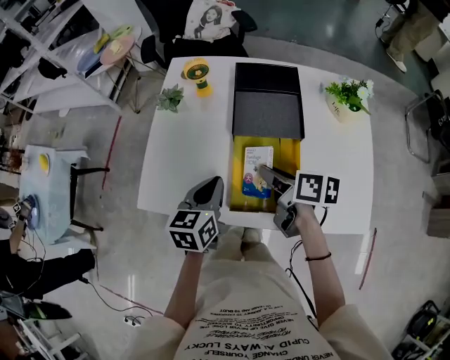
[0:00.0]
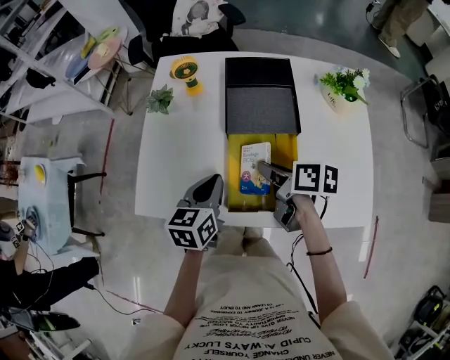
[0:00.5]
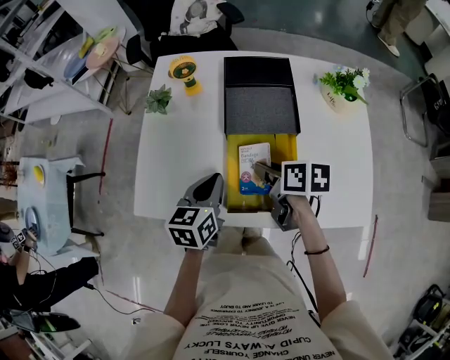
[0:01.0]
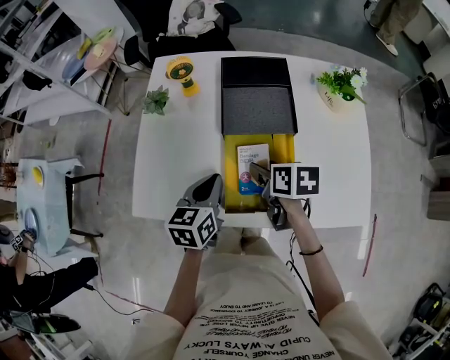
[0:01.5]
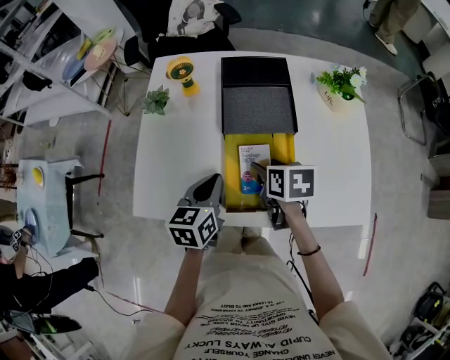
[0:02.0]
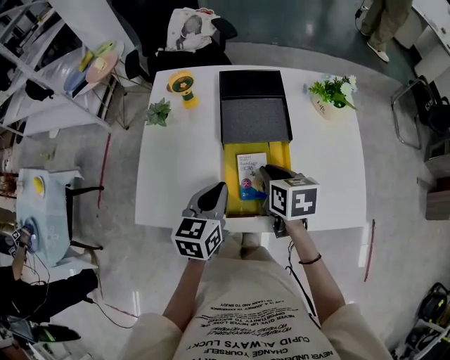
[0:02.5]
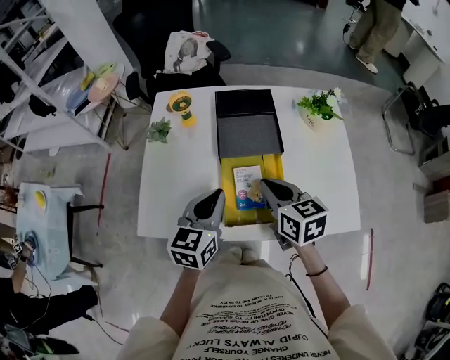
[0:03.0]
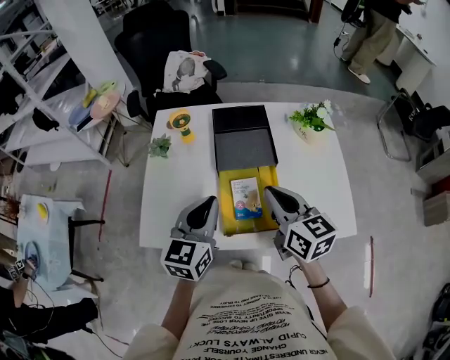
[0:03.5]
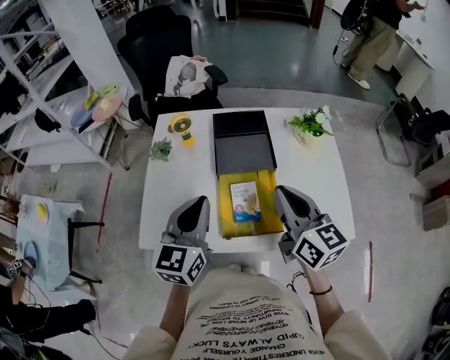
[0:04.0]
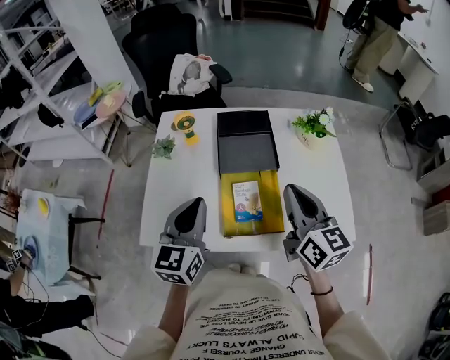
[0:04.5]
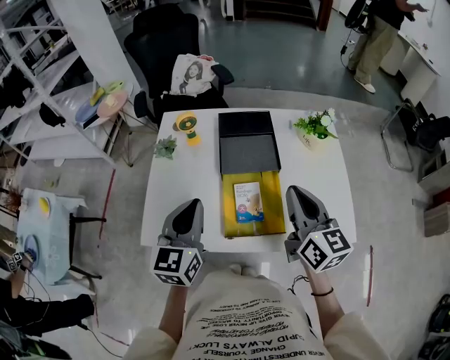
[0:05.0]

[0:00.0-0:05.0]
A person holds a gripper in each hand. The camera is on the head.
0:00.0 to 0:02.5: The right gripper turns by roughly 30 degrees, and opens, then closes once more.
0:02.5 to 0:05.0: Both grippers travel together upward, about 15 cm. The left gripper swivels some 20 degrees. The right gripper points its fingers about 40 degrees further upward.

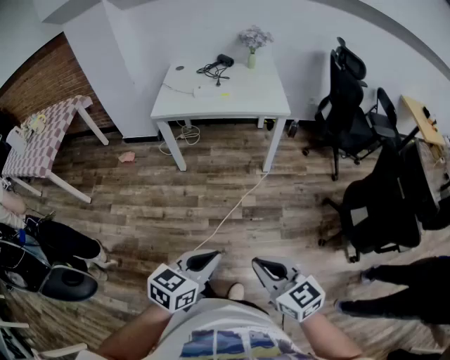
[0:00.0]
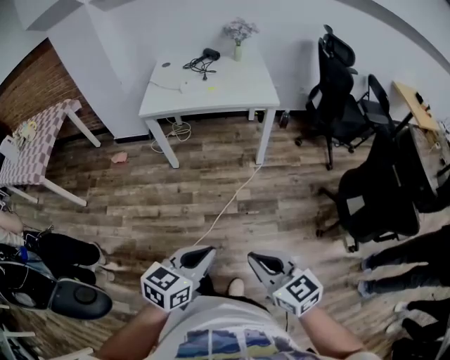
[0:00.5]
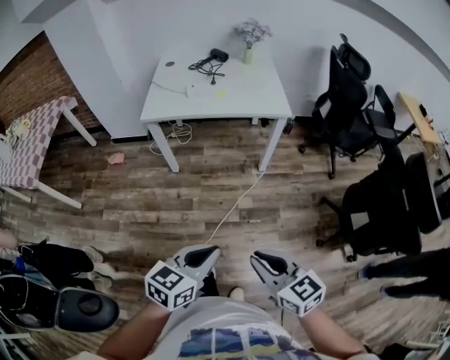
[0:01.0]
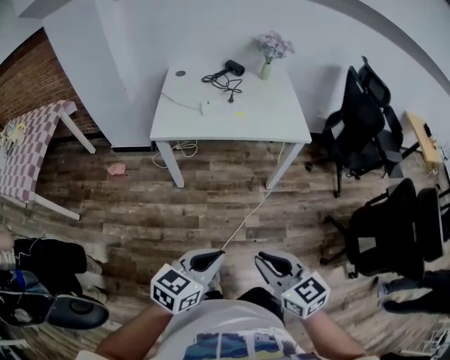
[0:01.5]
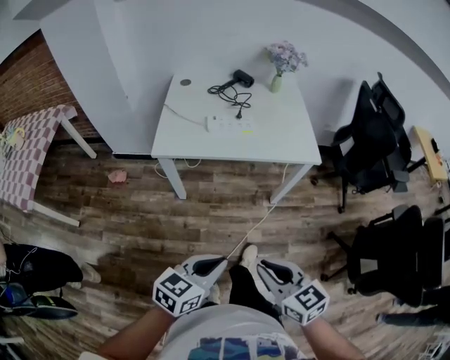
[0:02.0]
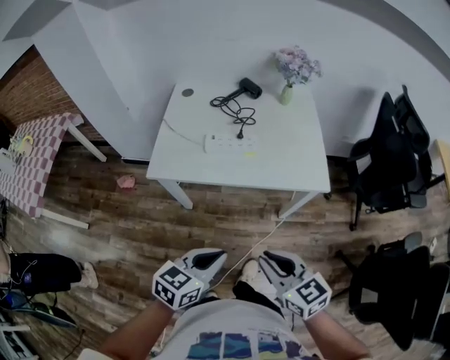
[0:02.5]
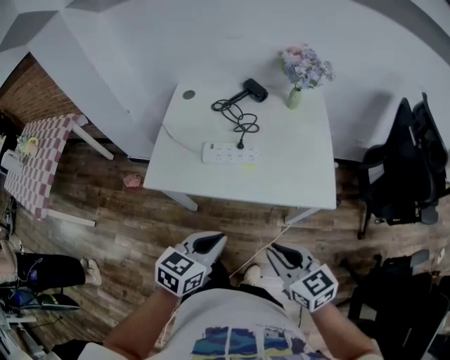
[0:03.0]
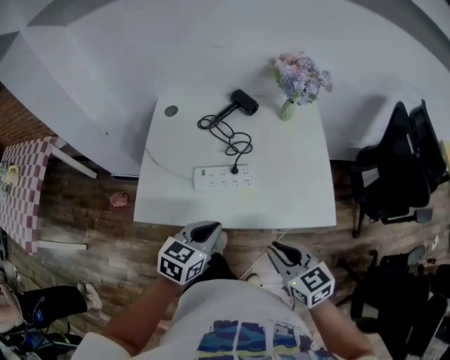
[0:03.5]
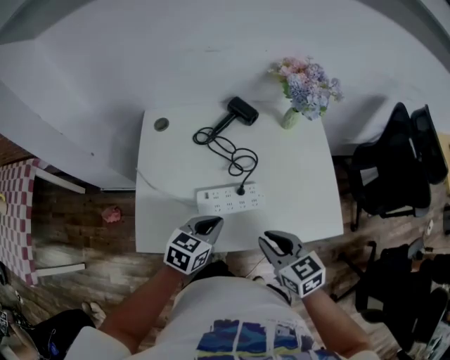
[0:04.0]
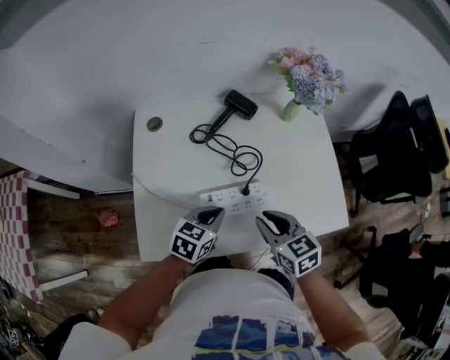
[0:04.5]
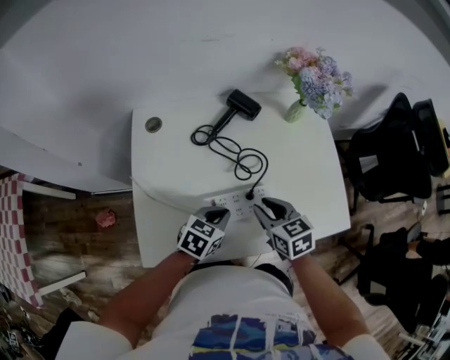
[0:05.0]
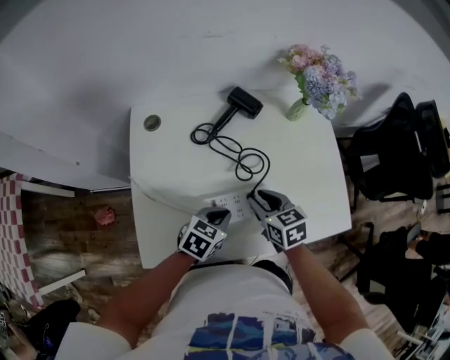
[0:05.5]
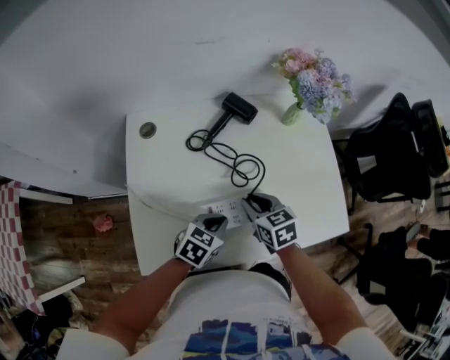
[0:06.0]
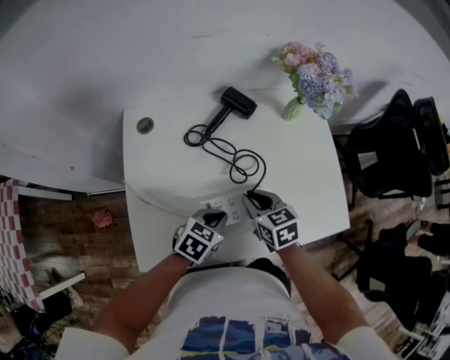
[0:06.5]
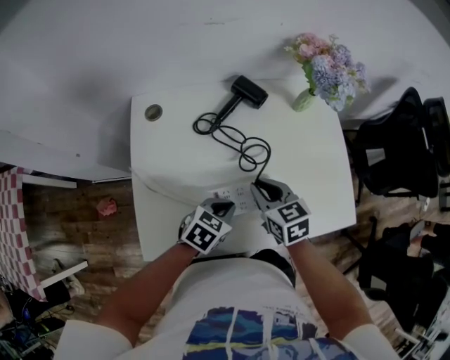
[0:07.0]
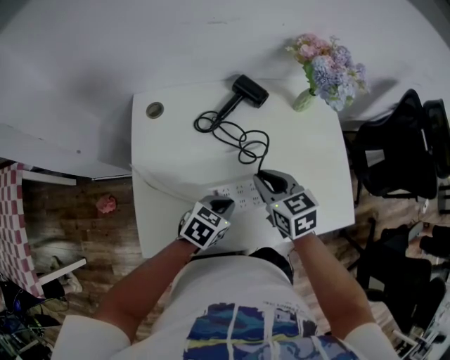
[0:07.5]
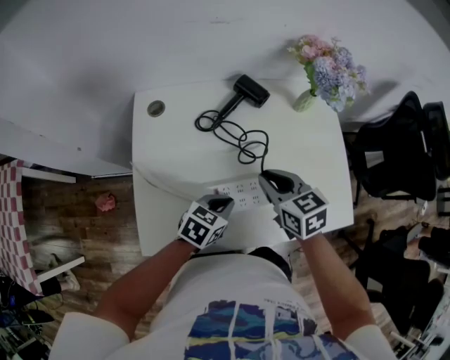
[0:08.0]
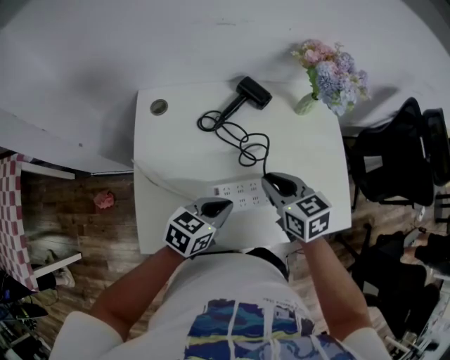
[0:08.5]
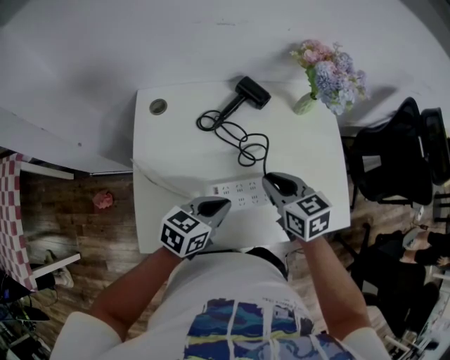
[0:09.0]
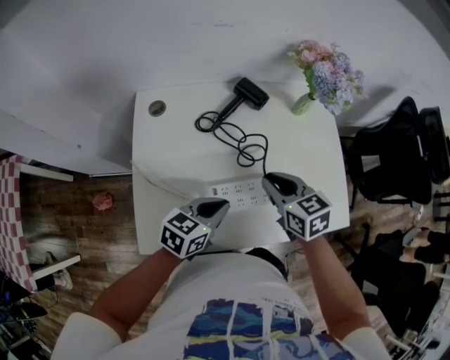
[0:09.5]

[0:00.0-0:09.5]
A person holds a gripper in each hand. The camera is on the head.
0:00.0 to 0:02.0: The two grippers go some 35 cm forward and to the left.
0:02.0 to 0:04.0: The two grippers travel together, forward, approximately 50 cm.
0:04.0 to 0:05.5: The right gripper goes roughly 20 cm forward, downward and to the left, while the left gripper shifts roughly 10 cm downward and forward.
0:05.5 to 0:07.5: The right gripper moves about 5 cm.
0:07.5 to 0:09.5: The left gripper shifts approximately 5 cm upward.

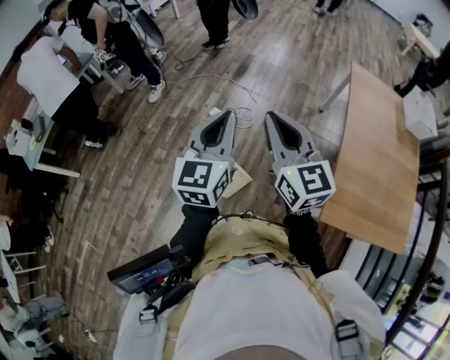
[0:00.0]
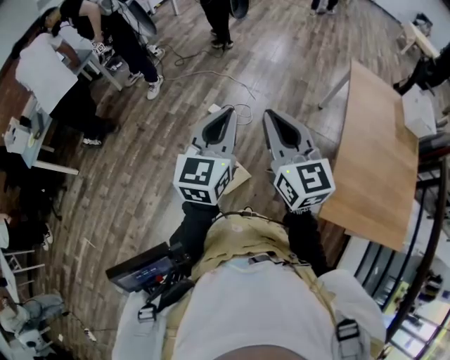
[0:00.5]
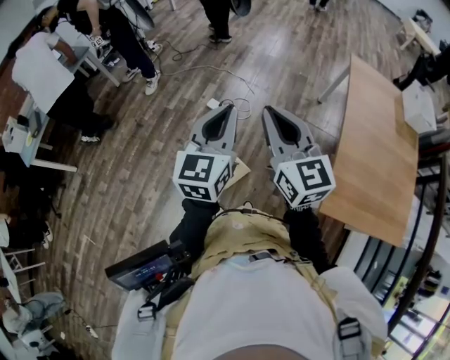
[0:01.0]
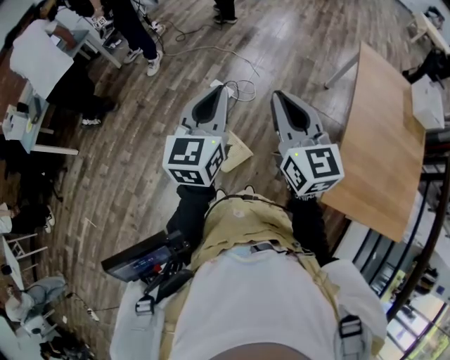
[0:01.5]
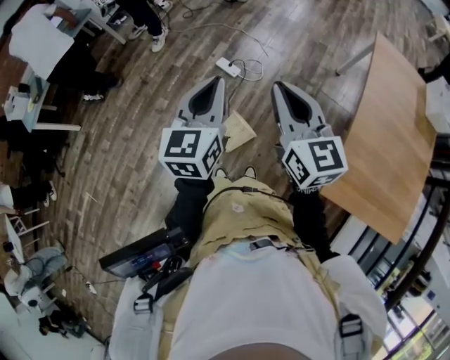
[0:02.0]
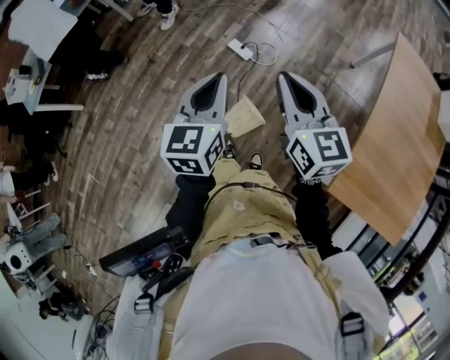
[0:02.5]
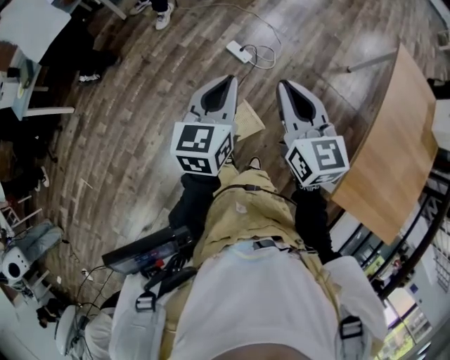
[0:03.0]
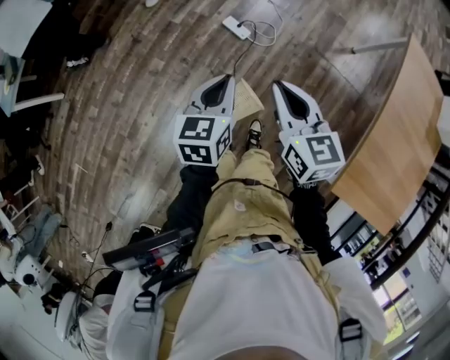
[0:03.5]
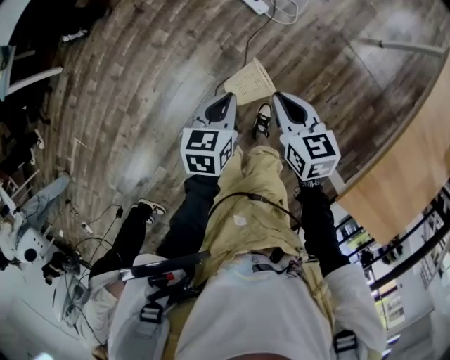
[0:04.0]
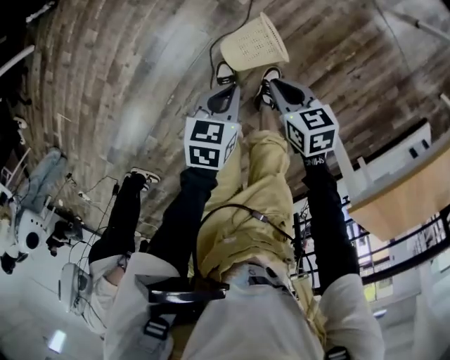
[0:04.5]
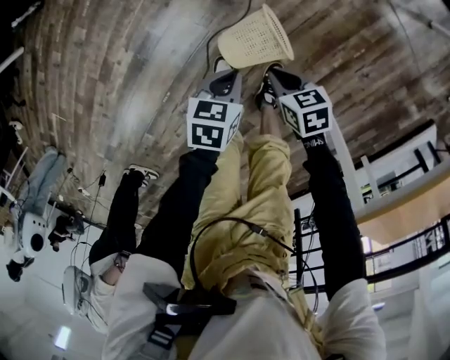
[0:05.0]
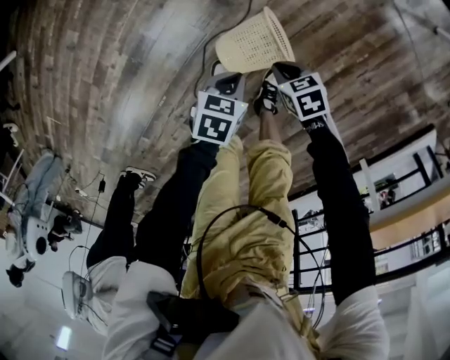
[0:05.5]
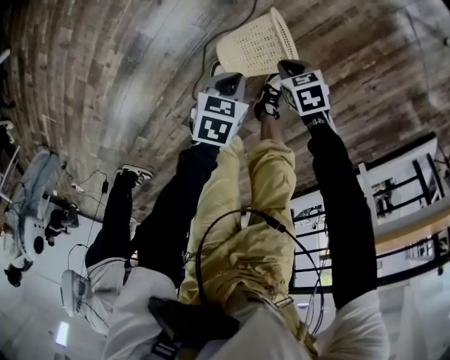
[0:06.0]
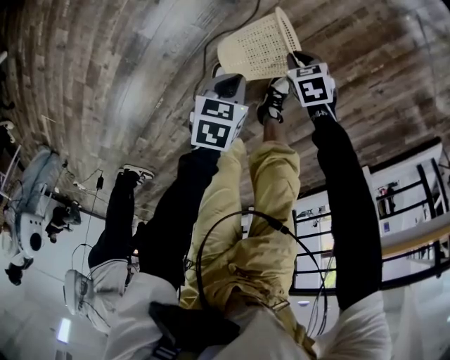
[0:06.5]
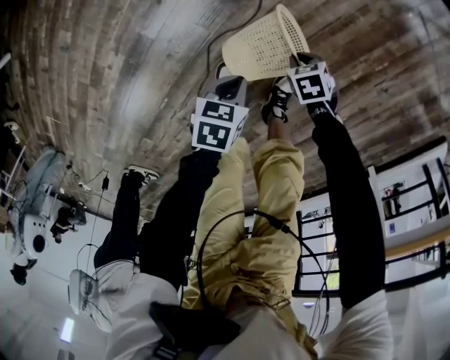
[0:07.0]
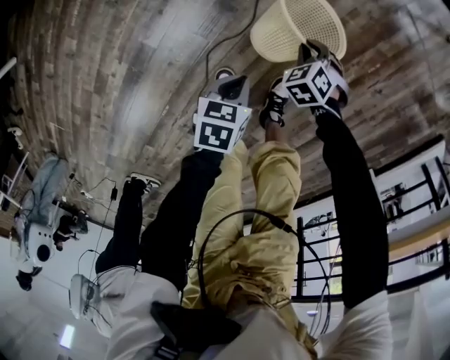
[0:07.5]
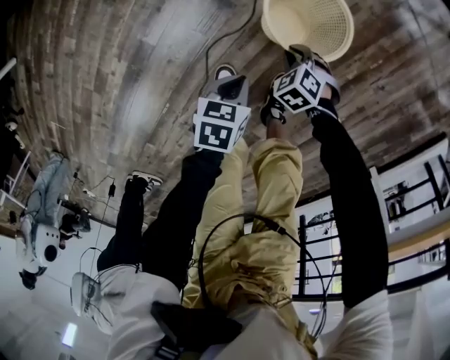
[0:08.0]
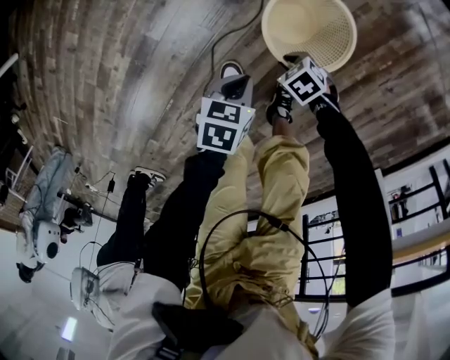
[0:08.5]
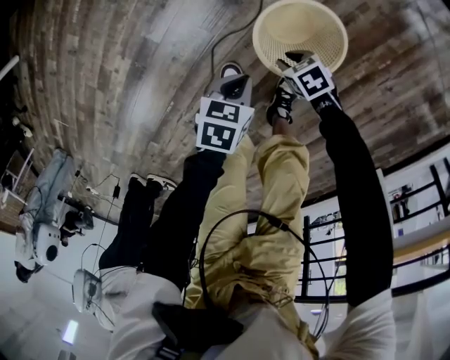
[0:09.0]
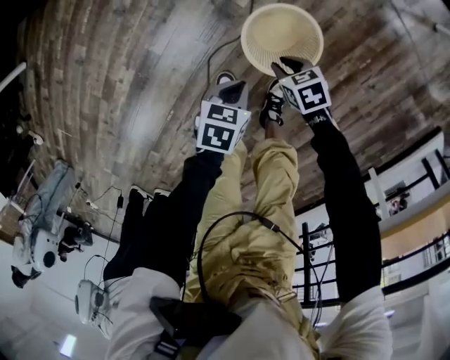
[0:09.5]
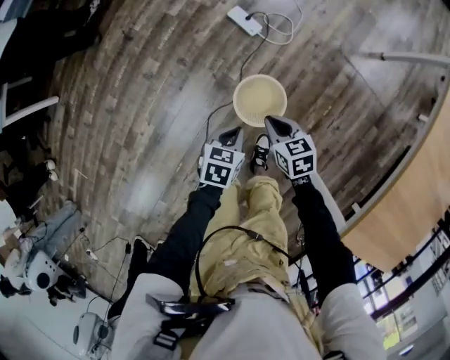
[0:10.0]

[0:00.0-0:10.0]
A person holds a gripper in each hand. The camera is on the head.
0:00.0 to 0:02.0: The right gripper moves some 5 cm. The left gripper changes place by approximately 5 cm.
0:02.0 to 0:04.0: The two grippers go some 35 cm downward. The right gripper points its fingers roughly 30 degrees further downward; the left gripper tips its fingers downward by some 30 degrees.
0:04.0 to 0:06.0: Both grippers travel together downward, roughly 50 cm. The right gripper changes its angle by roughly 40 degrees, while the left gripper changes its angle by some 30 degrees.
0:06.0 to 0:08.0: The right gripper changes its angle by some 30 degrees.
0:08.0 to 0:10.0: Both grippers move upward, about 30 cm. The right gripper tilts its fingers roughly 30 degrees upward.

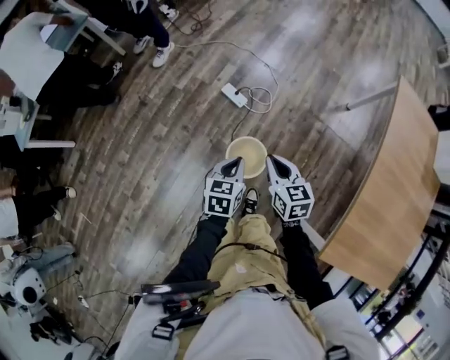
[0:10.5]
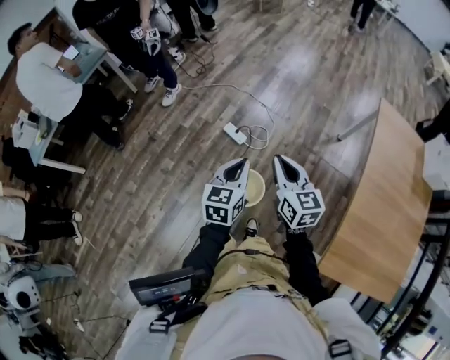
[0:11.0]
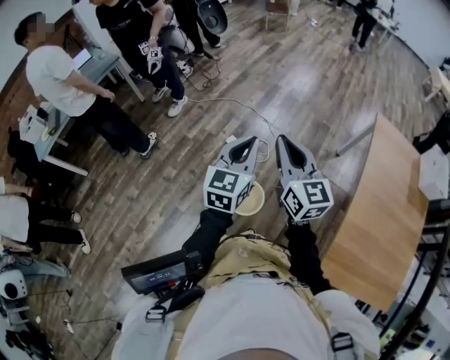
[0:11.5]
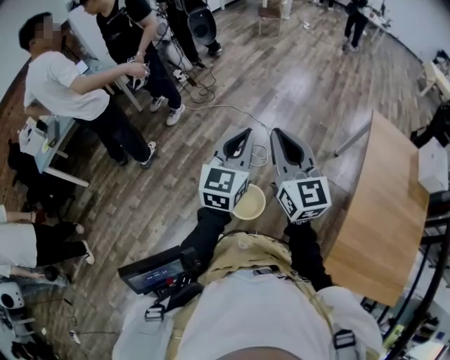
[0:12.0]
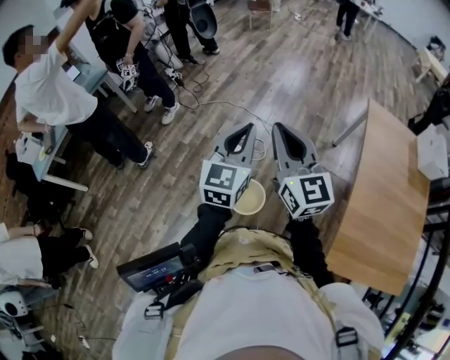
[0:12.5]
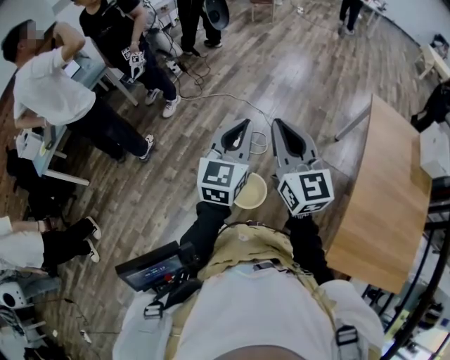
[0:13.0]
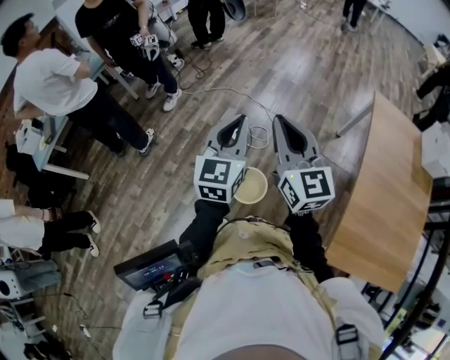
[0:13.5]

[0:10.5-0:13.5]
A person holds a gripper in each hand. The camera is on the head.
0:10.5 to 0:12.0: The two grippers go some 35 cm upward. The right gripper tilts its fingers about 40 degrees upward. Meanwhile the left gripper points its fingers some 40 degrees further upward.
0:12.0 to 0:13.5: There are only small adjustments of the grippers.
